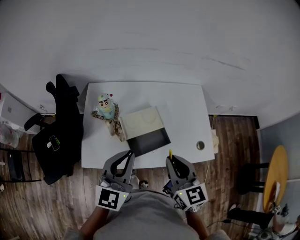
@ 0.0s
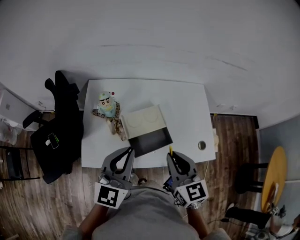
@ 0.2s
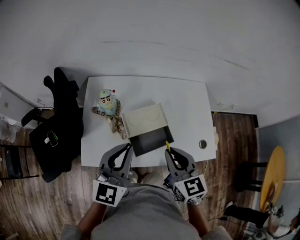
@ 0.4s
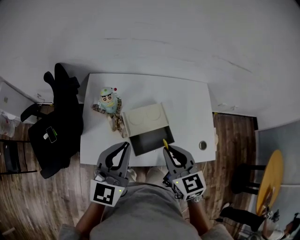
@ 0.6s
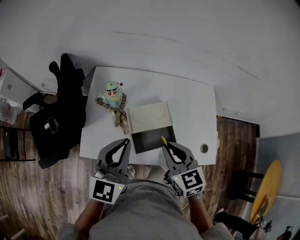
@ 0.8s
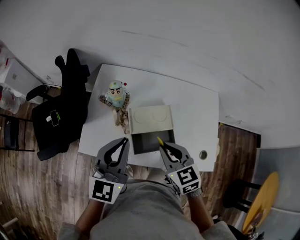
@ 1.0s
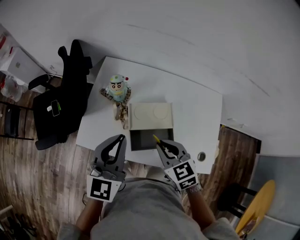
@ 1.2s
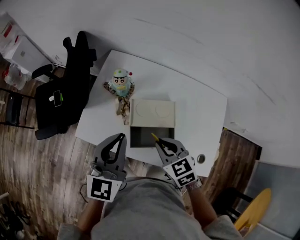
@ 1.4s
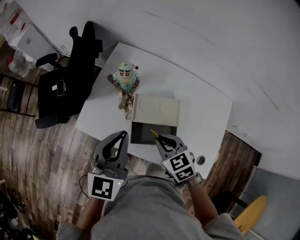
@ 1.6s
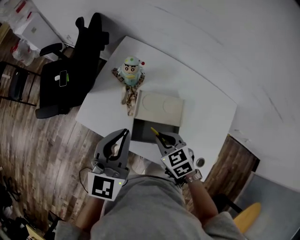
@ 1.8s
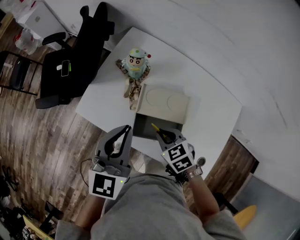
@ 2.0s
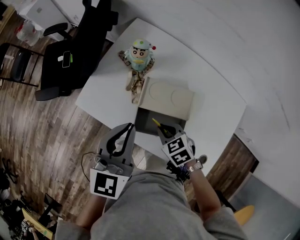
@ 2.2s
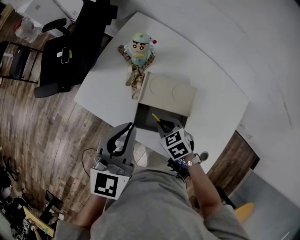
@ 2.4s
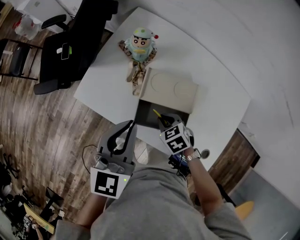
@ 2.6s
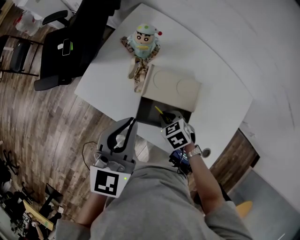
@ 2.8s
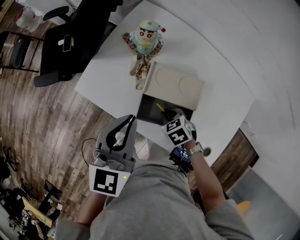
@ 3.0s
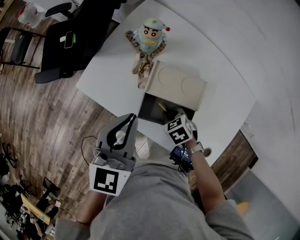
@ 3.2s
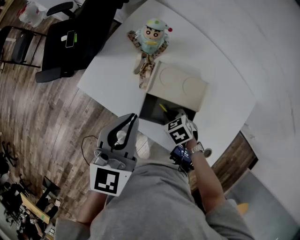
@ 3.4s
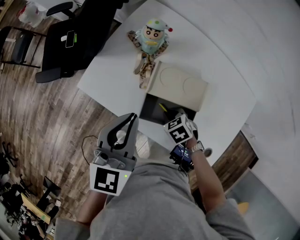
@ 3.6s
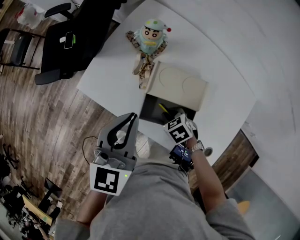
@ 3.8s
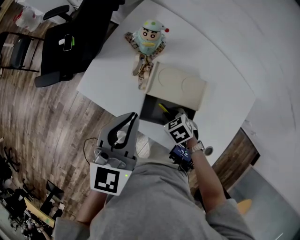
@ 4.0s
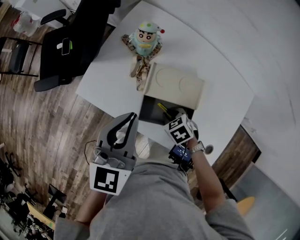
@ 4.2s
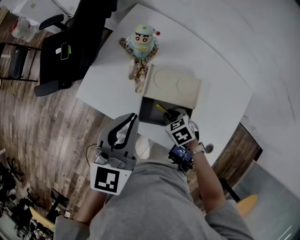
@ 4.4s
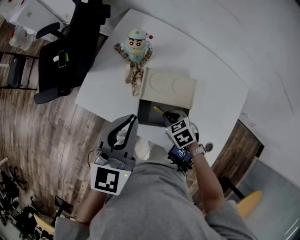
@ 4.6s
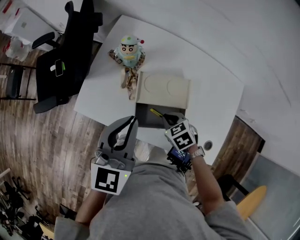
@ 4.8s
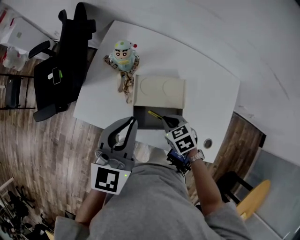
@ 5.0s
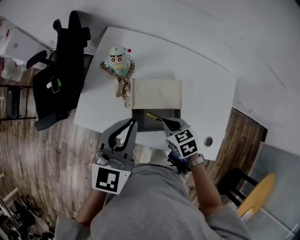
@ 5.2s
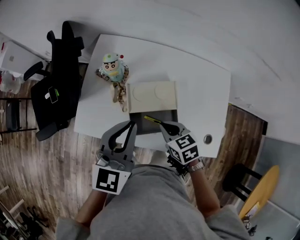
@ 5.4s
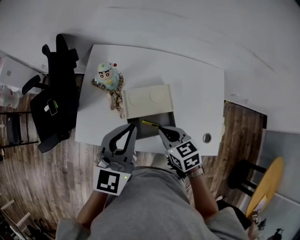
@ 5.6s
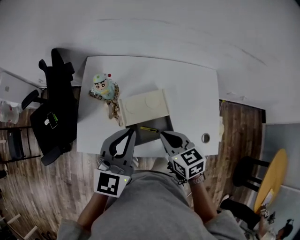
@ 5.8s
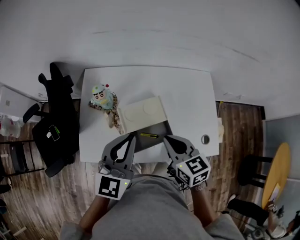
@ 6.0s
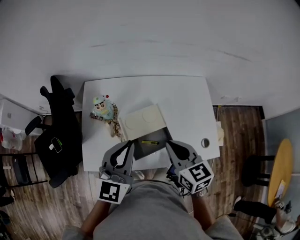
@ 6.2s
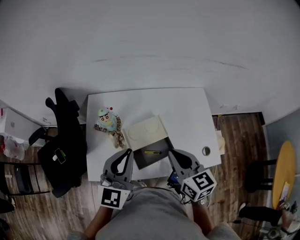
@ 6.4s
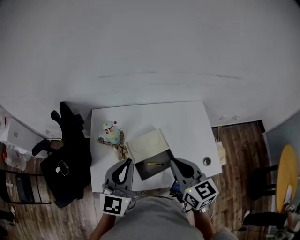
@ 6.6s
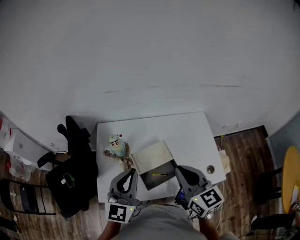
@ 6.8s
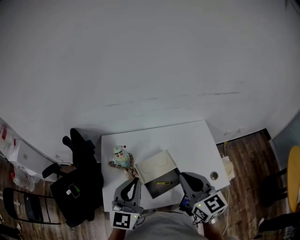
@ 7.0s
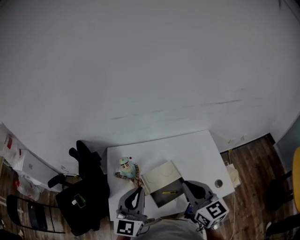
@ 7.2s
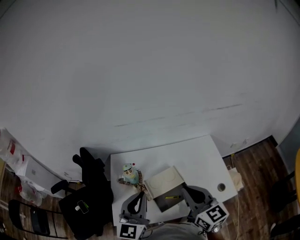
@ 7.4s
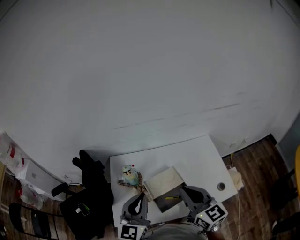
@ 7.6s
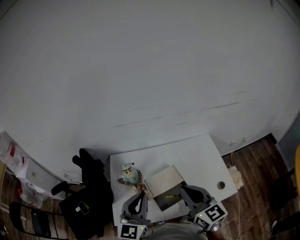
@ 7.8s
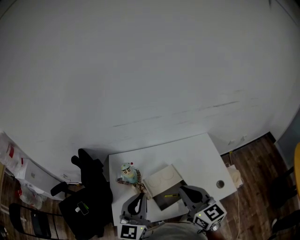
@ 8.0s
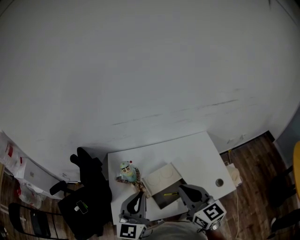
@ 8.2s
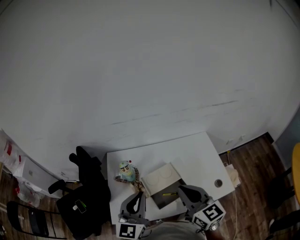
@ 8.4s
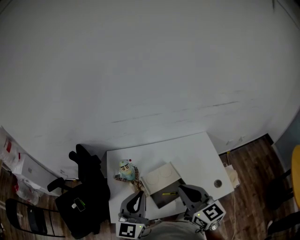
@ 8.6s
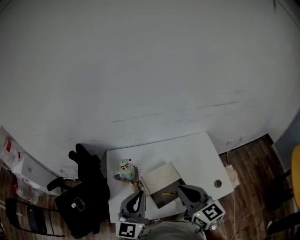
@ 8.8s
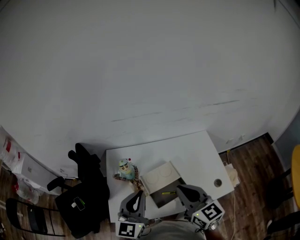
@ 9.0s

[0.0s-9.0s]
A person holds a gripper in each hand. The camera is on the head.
0.0s to 1.6s: The right gripper travels downward by about 15 cm, and swivels some 50 degrees. Meanwhile the left gripper shifts by approximately 5 cm, and turns by about 30 degrees.
1.6s to 3.0s: The right gripper heads downward, covering roughly 20 cm, and changes its angle by some 20 degrees. Meanwhile the left gripper goes roughly 5 cm downward.
3.0s to 4.4s: The grippers stay close to where they were, moving slightly.
4.4s to 6.0s: The right gripper shifts about 25 cm upward, and tips its fingers upward by some 40 degrees. The left gripper shifts by some 10 cm, and changes its angle by some 30 degrees.
6.0s to 7.6s: The left gripper shifts approximately 10 cm upward and to the left, while the right gripper travels upward by about 15 cm, and swivels roughly 30 degrees.
7.6s to 9.0s: There are only small adjustments of the grippers.

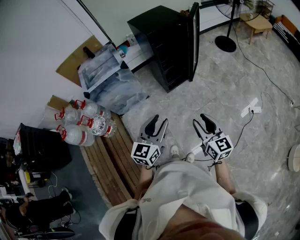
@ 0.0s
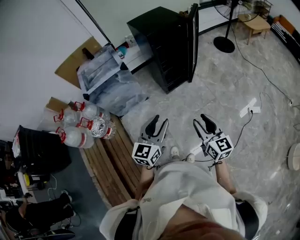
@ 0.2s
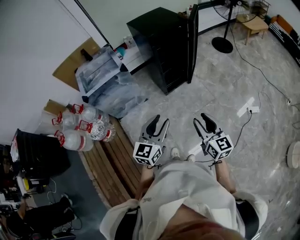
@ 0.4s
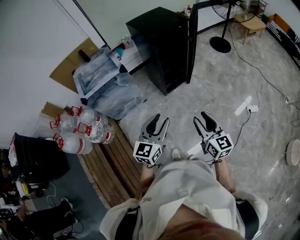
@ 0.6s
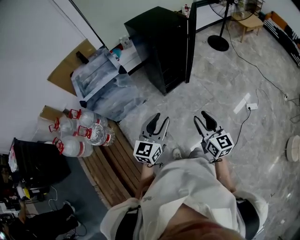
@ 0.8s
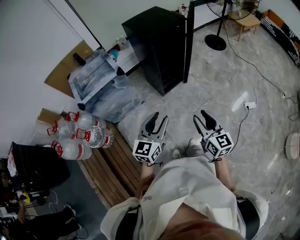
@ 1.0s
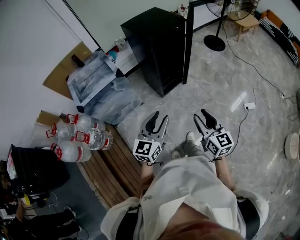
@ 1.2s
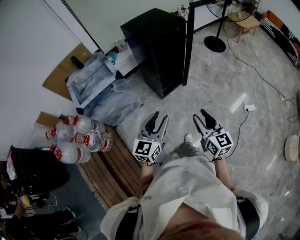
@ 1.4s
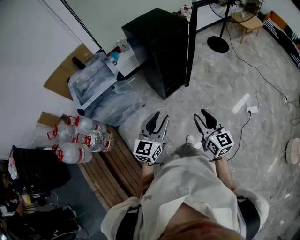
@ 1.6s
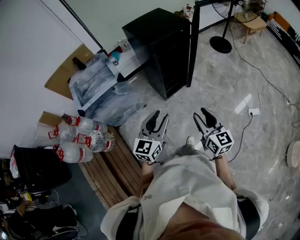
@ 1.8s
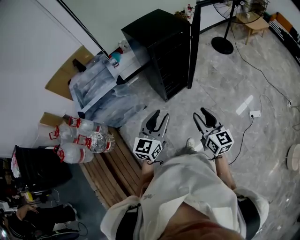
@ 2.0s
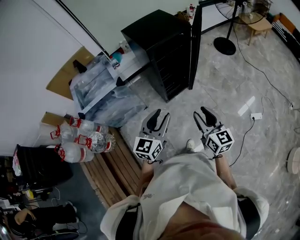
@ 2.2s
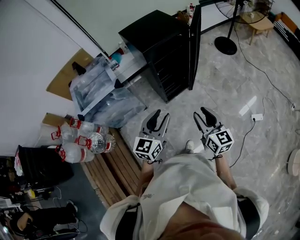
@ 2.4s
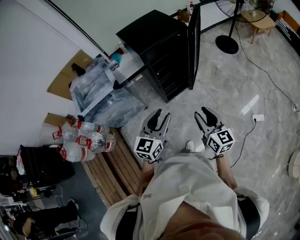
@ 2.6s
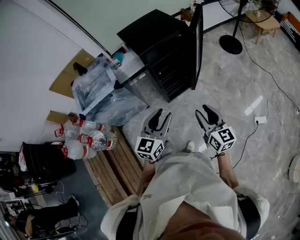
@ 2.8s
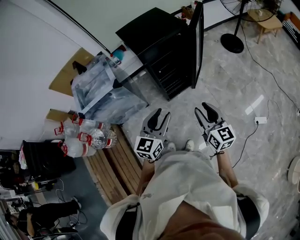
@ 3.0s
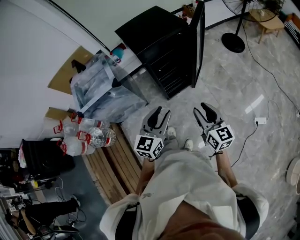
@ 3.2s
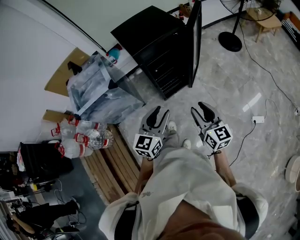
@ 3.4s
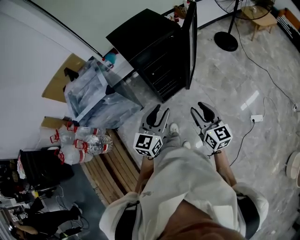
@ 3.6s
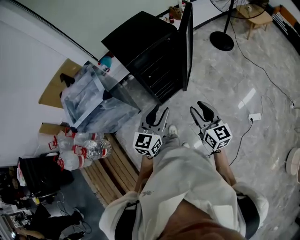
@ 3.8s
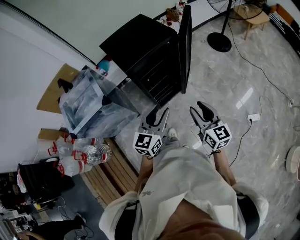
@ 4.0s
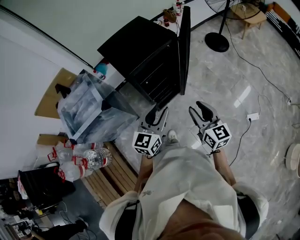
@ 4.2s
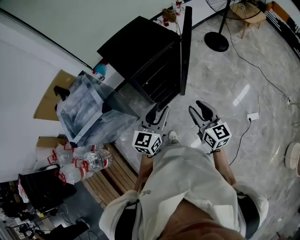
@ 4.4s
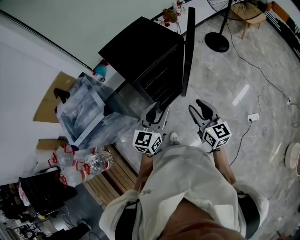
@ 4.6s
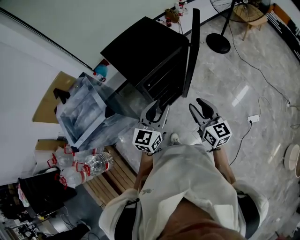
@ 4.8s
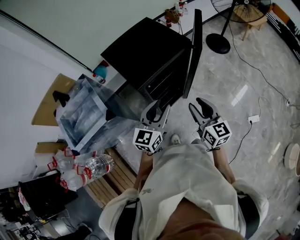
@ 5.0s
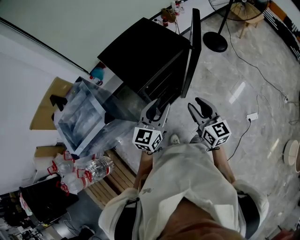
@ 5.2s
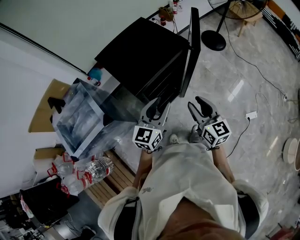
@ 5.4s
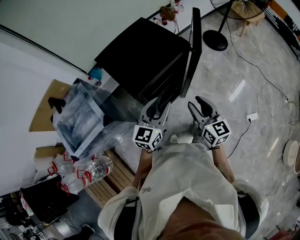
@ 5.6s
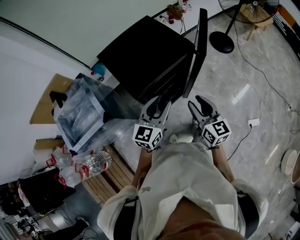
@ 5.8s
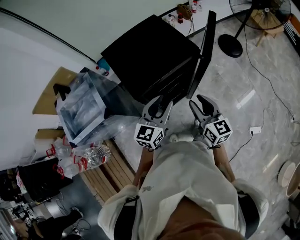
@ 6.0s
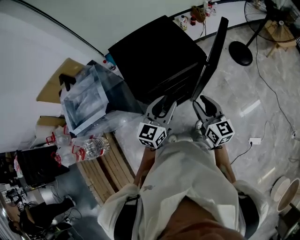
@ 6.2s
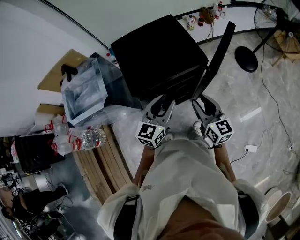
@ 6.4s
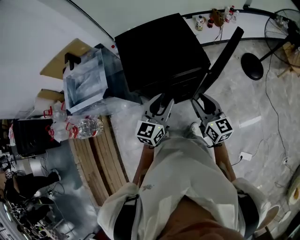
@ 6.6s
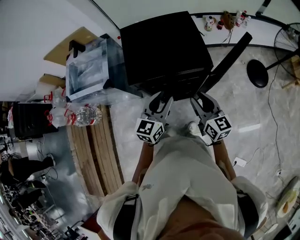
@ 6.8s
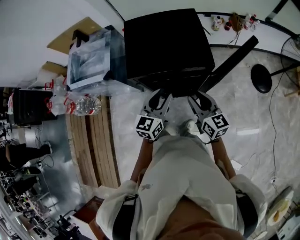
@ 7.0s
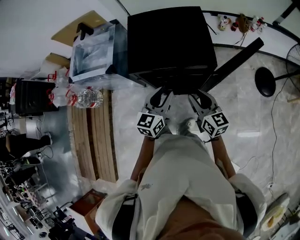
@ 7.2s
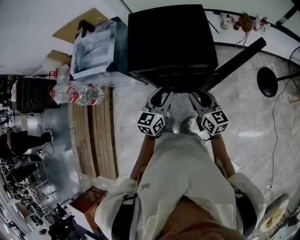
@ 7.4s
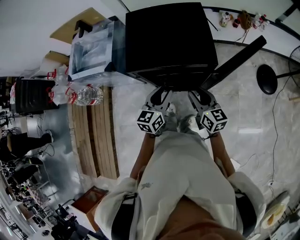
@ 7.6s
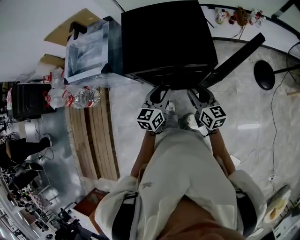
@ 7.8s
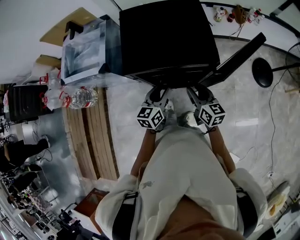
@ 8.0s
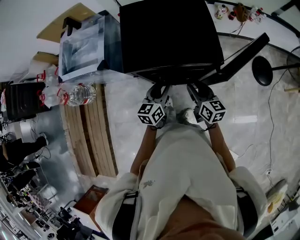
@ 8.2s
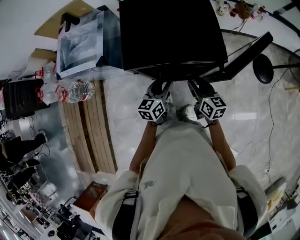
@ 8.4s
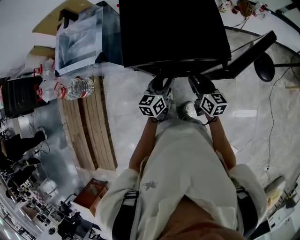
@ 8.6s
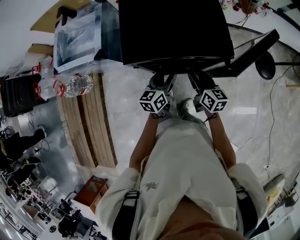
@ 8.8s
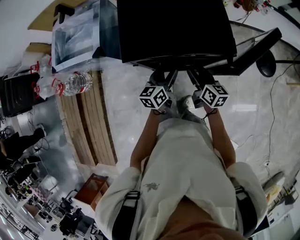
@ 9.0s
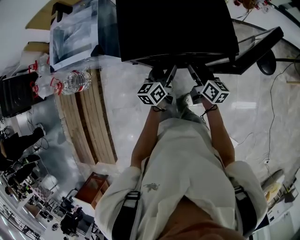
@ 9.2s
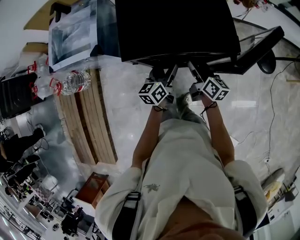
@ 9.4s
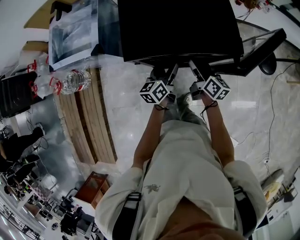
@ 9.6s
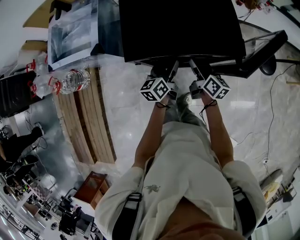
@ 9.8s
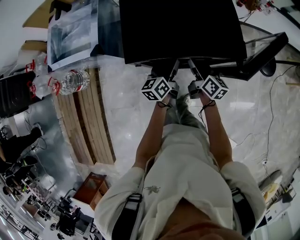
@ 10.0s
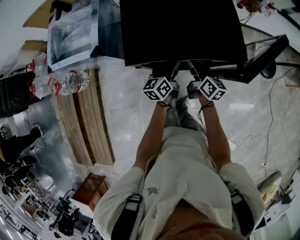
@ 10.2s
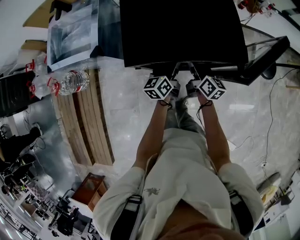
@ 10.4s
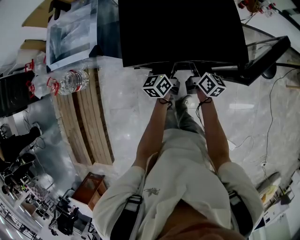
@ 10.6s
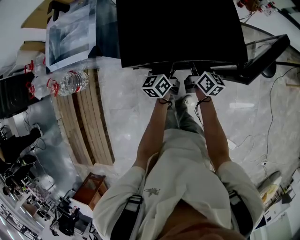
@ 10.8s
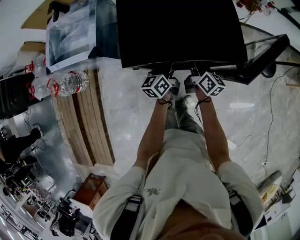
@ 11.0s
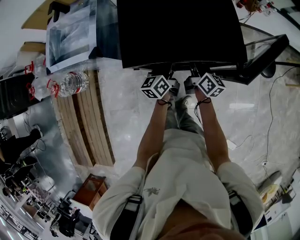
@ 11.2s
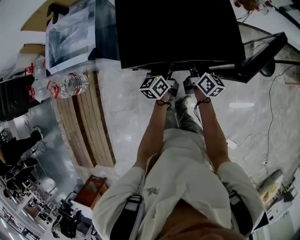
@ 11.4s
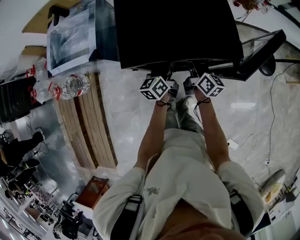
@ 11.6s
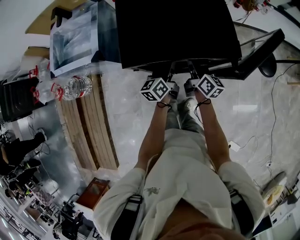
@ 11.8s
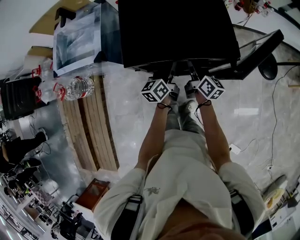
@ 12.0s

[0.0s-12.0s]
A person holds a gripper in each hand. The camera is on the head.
0.0s to 1.6s: Both grippers move forward and to the left, approximately 15 cm.
1.6s to 3.0s: Both grippers travel together forward and to the right, about 20 cm.
3.0s to 4.4s: Both grippers move forward, roughly 15 cm.
4.4s to 6.0s: The grippers both shift forward by approximately 15 cm.
6.0s to 7.6s: The left gripper moves downward, some 10 cm, and changes its angle by approximately 40 degrees; the right gripper moves some 10 cm, and rotates approximately 30 degrees.
7.6s to 9.0s: The two grippers go approximately 10 cm downward and forward.
9.0s to 10.4s: The grippers both shift forward by approximately 5 cm.
10.4s to 12.0s: The left gripper closes. Meanwhile the right gripper closes.

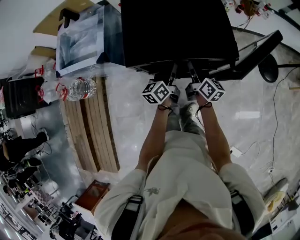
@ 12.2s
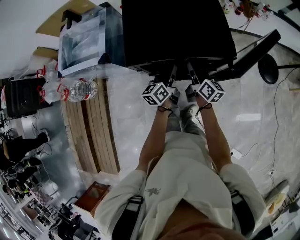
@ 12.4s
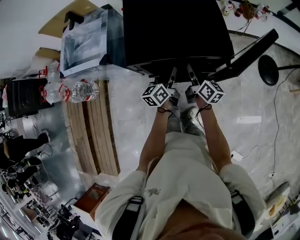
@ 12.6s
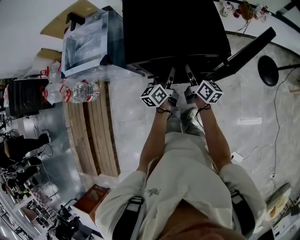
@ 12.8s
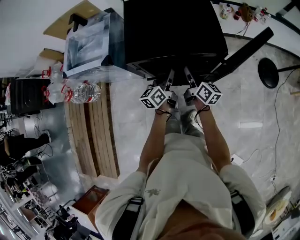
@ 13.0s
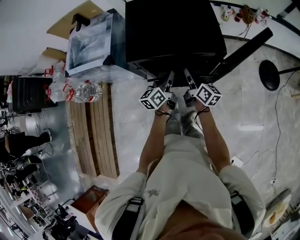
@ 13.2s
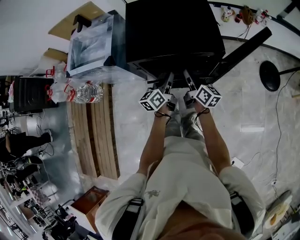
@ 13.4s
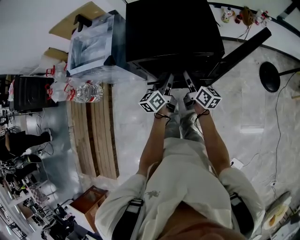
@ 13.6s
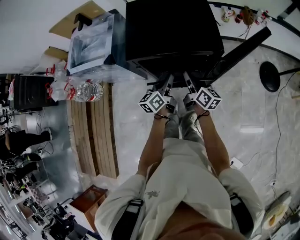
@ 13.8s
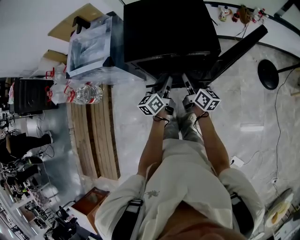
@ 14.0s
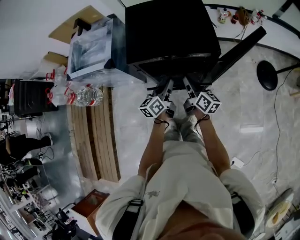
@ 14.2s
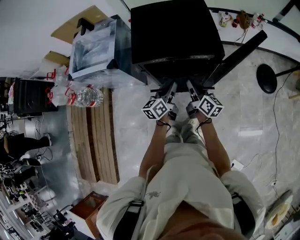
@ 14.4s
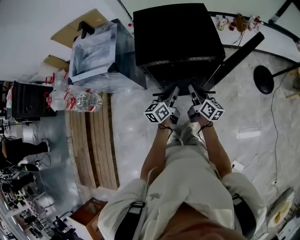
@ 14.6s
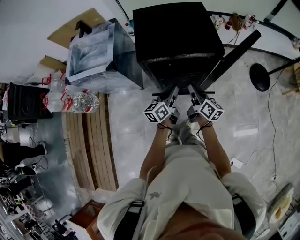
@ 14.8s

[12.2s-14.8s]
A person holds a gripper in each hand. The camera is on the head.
12.2s to 13.4s: Both grippers move backward, approximately 5 cm.
13.4s to 14.8s: The two grippers go approximately 5 cm backward.
